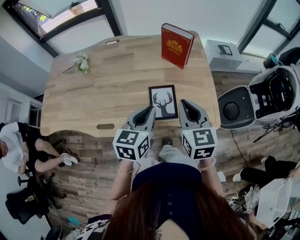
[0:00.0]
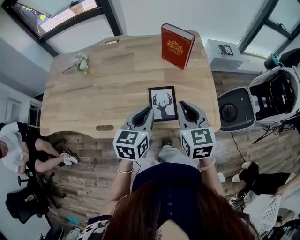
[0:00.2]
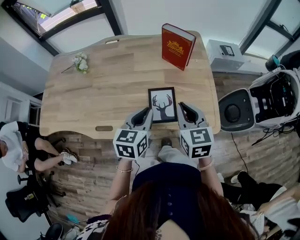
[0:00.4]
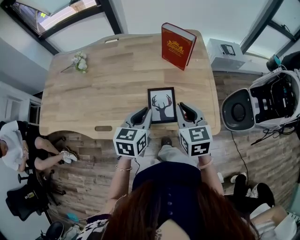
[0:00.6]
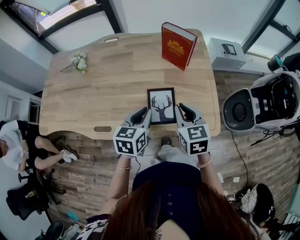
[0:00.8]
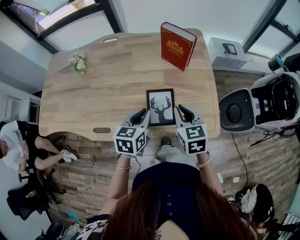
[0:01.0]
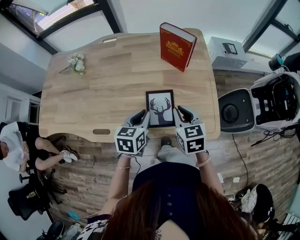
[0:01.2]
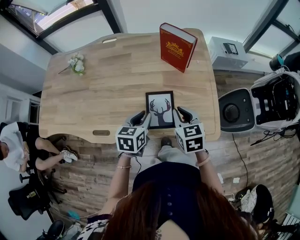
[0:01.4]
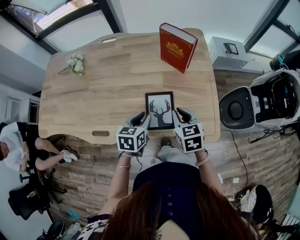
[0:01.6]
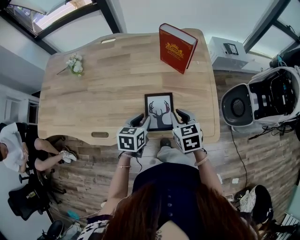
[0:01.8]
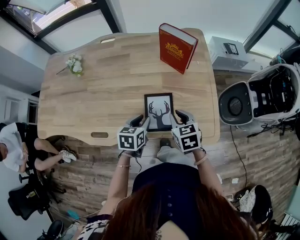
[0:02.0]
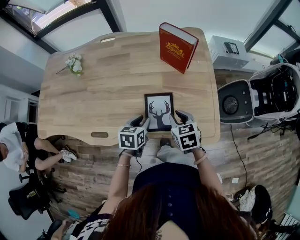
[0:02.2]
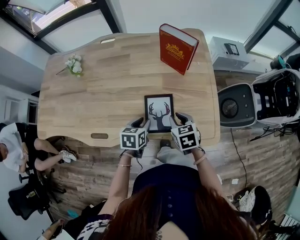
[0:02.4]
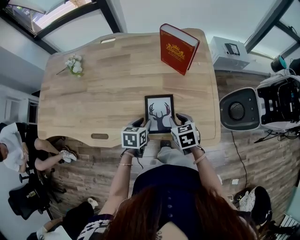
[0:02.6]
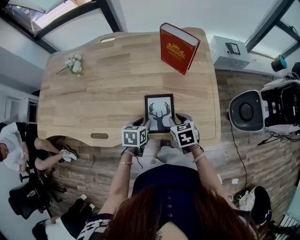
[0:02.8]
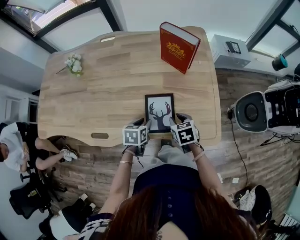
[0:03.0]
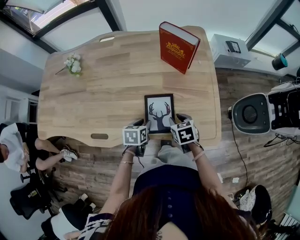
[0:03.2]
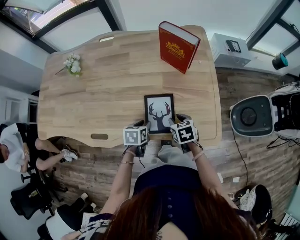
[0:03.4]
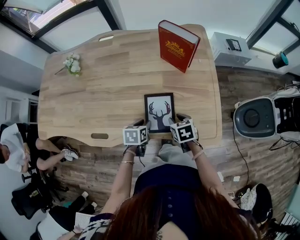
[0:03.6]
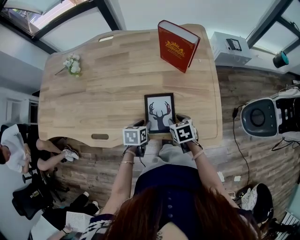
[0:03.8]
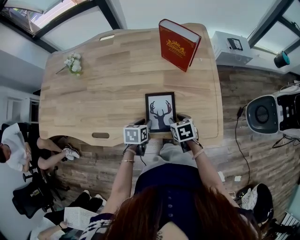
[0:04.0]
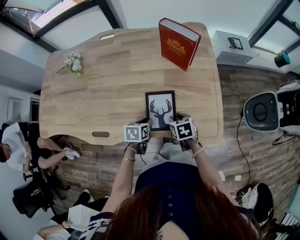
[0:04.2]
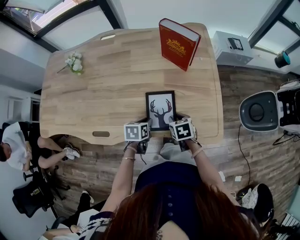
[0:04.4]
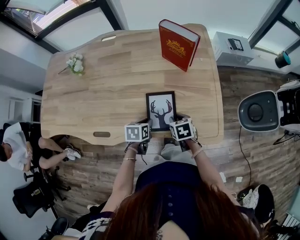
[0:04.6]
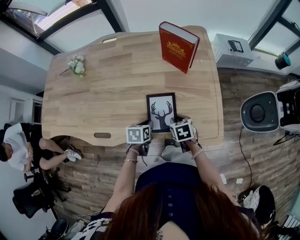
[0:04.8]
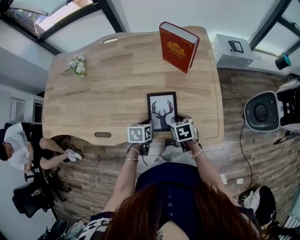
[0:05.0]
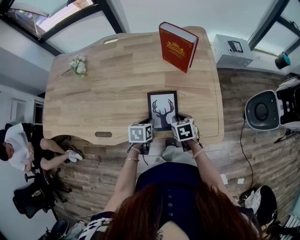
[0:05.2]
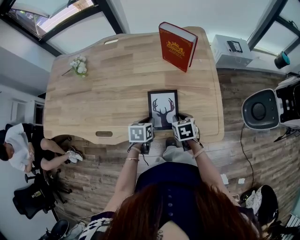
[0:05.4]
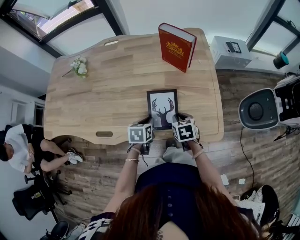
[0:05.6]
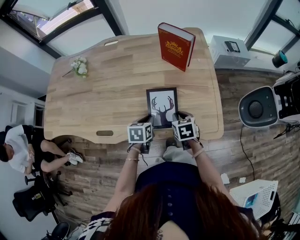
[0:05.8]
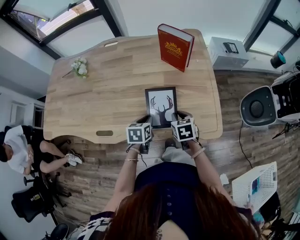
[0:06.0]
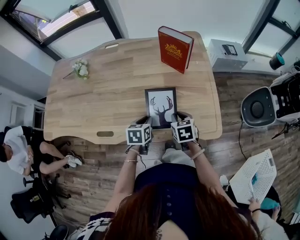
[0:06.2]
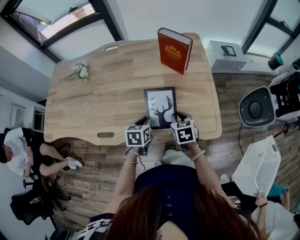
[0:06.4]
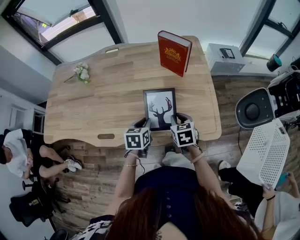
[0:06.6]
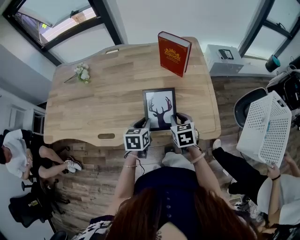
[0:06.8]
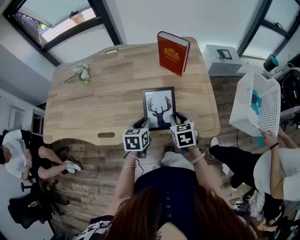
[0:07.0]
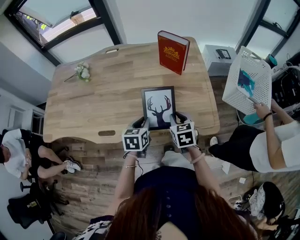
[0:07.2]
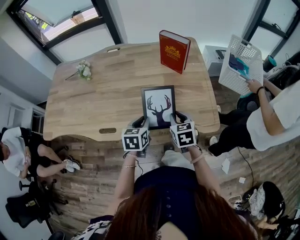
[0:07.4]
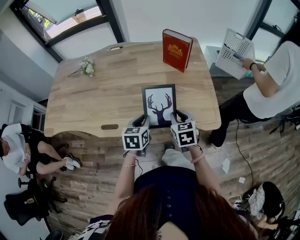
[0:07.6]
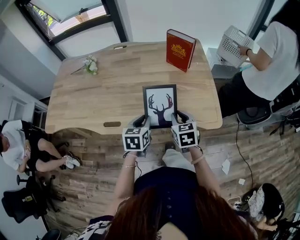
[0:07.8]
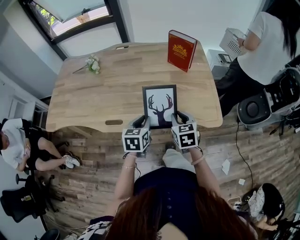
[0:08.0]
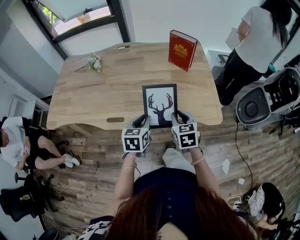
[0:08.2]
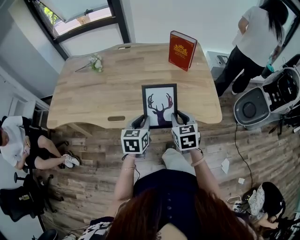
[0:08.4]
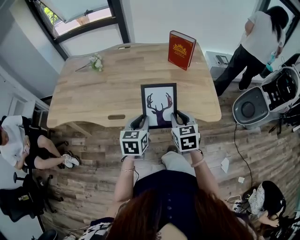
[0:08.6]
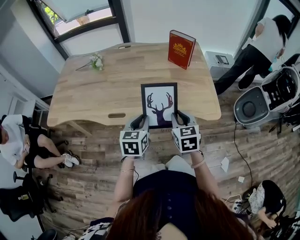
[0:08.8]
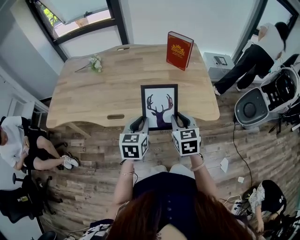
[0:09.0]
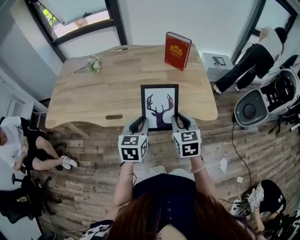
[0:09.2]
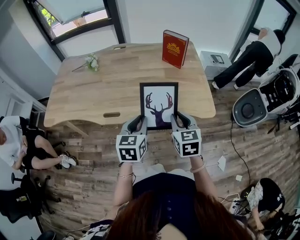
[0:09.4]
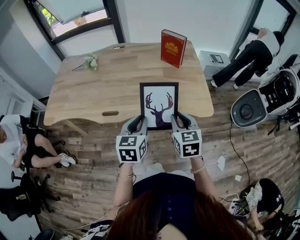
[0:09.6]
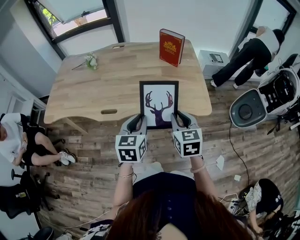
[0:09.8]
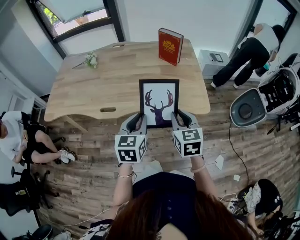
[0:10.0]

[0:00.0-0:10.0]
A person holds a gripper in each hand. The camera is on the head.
0:00.0 to 0:01.4: The two grippers go about 15 cm downward and forward.
0:01.4 to 0:02.8: The grippers both shift downward by about 10 cm.
0:02.8 to 0:05.8: The grippers make only small movements.
0:05.8 to 0:07.2: The grippers both shift upward by approximately 10 cm.
0:07.2 to 0:08.6: Both grippers move backward, upward and to the left, approximately 15 cm.
0:08.6 to 0:10.0: The left gripper travels backward, upward and to the right by some 10 cm. Meanwhile the right gripper is displaced backward, to the right and upward by about 10 cm.

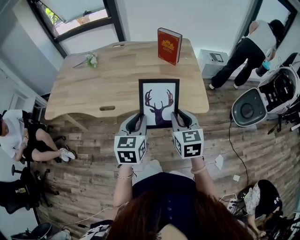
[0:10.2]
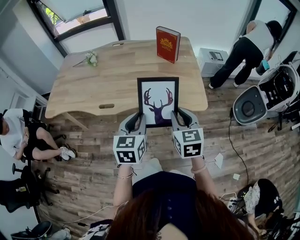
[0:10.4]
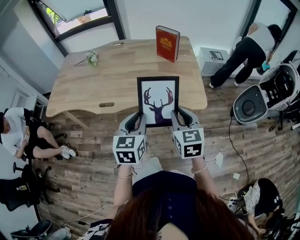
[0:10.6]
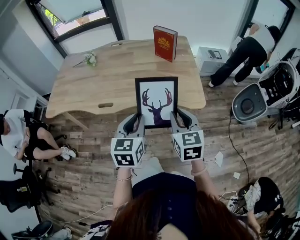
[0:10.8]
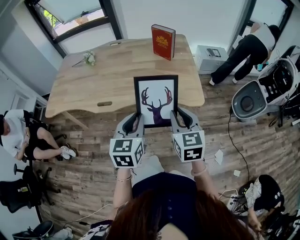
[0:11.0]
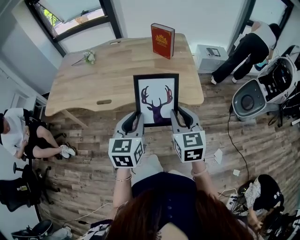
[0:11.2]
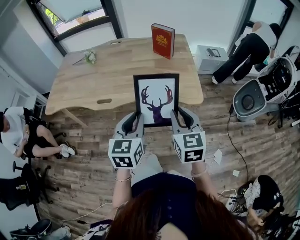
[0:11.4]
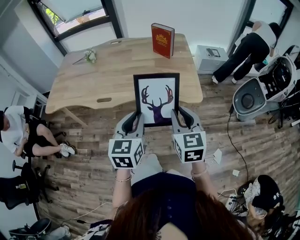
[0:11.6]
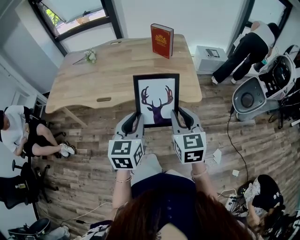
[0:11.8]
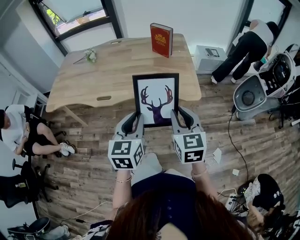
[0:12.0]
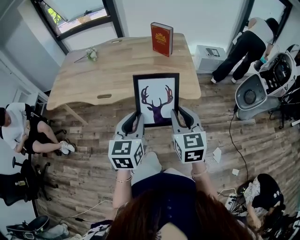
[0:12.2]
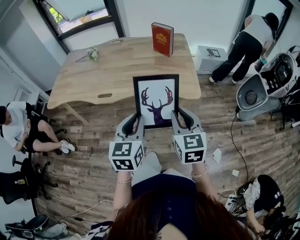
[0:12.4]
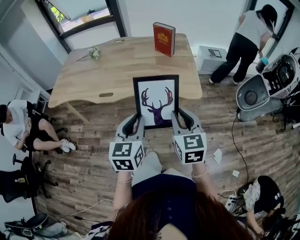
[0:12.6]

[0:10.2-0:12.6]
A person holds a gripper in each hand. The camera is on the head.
0:10.2 to 0:11.4: The two grippers go some 5 cm backward.
0:11.4 to 0:12.6: The grippers both shift backward by some 5 cm.

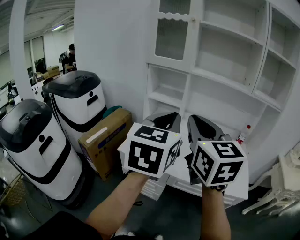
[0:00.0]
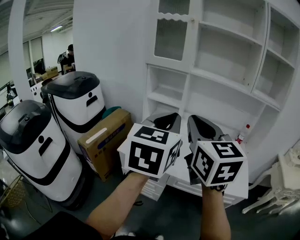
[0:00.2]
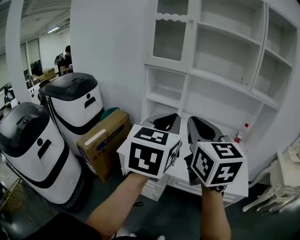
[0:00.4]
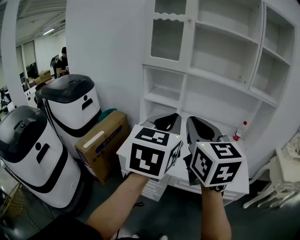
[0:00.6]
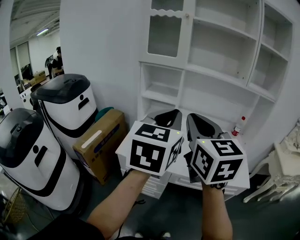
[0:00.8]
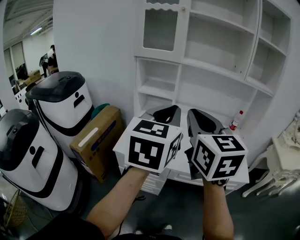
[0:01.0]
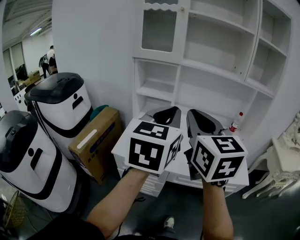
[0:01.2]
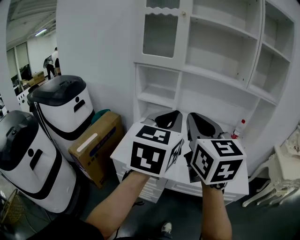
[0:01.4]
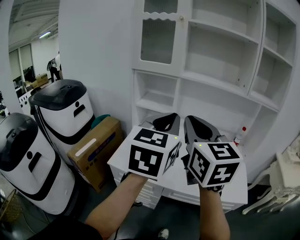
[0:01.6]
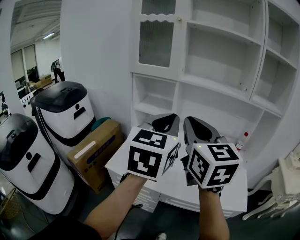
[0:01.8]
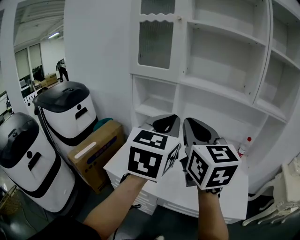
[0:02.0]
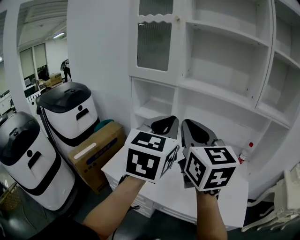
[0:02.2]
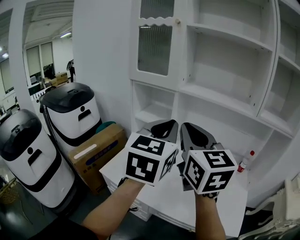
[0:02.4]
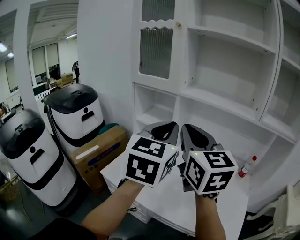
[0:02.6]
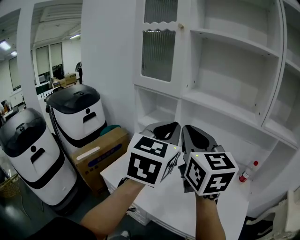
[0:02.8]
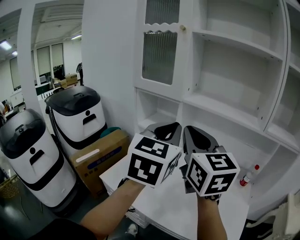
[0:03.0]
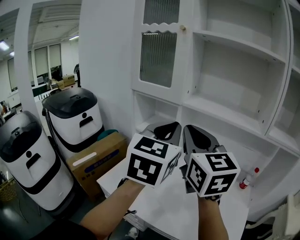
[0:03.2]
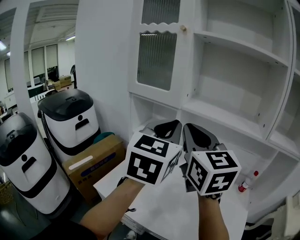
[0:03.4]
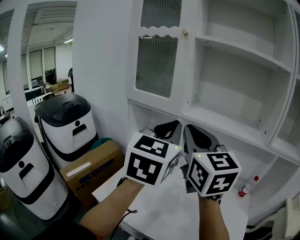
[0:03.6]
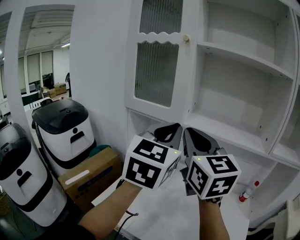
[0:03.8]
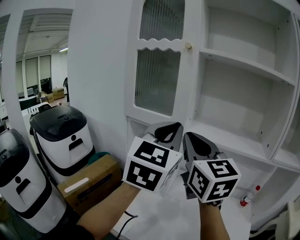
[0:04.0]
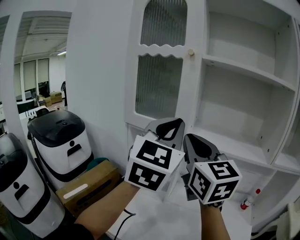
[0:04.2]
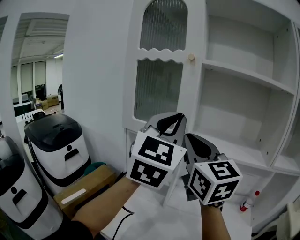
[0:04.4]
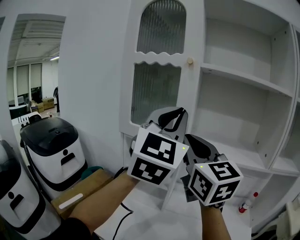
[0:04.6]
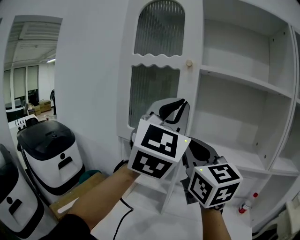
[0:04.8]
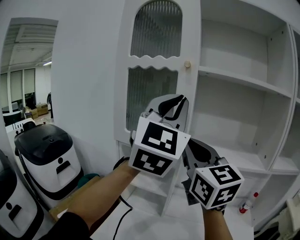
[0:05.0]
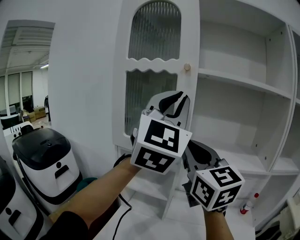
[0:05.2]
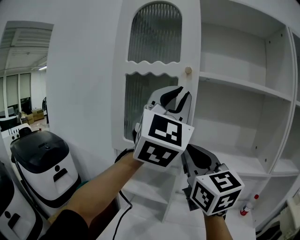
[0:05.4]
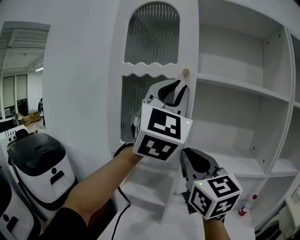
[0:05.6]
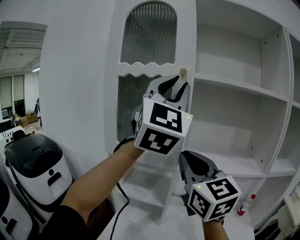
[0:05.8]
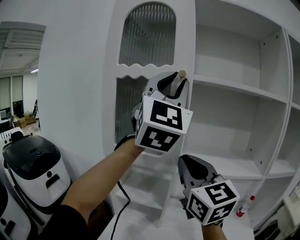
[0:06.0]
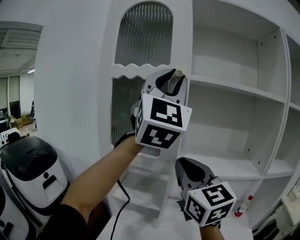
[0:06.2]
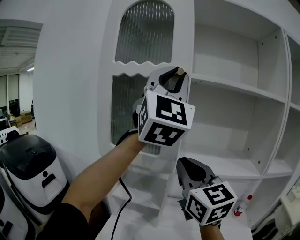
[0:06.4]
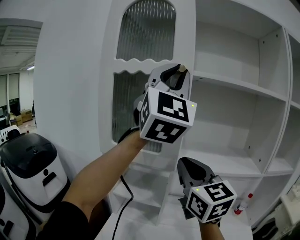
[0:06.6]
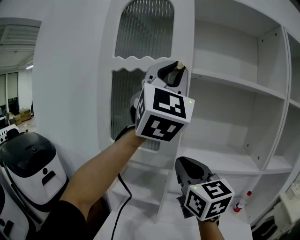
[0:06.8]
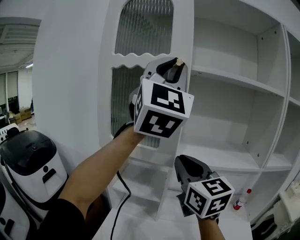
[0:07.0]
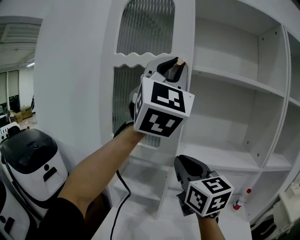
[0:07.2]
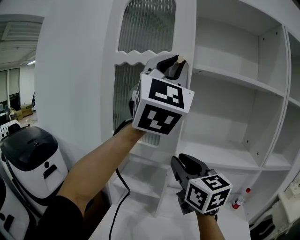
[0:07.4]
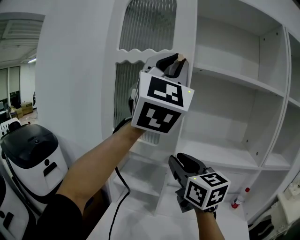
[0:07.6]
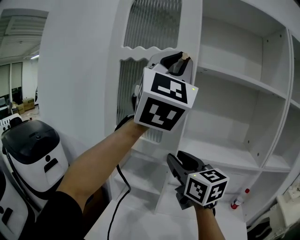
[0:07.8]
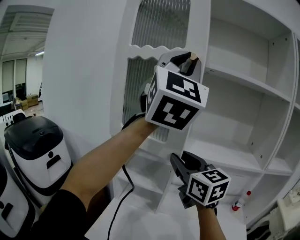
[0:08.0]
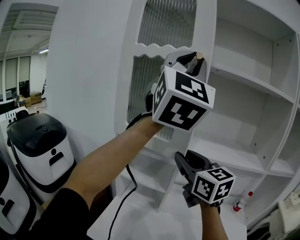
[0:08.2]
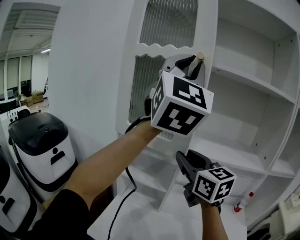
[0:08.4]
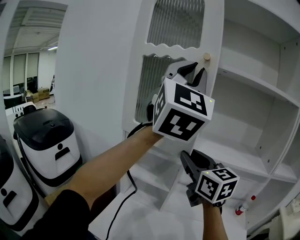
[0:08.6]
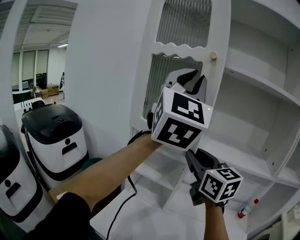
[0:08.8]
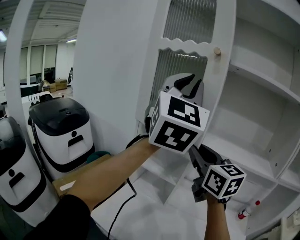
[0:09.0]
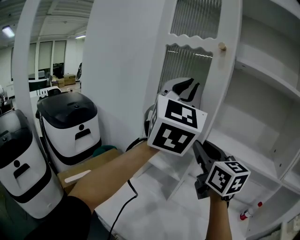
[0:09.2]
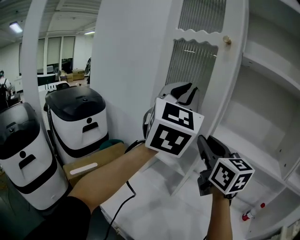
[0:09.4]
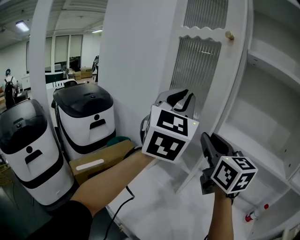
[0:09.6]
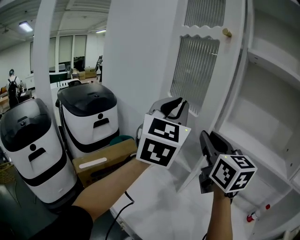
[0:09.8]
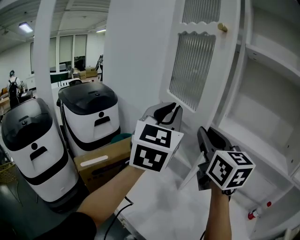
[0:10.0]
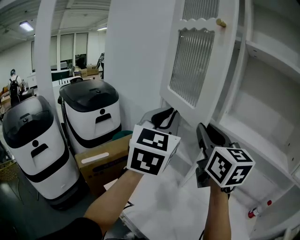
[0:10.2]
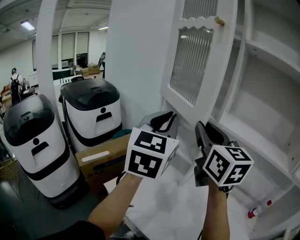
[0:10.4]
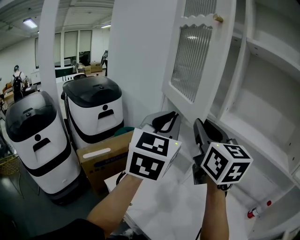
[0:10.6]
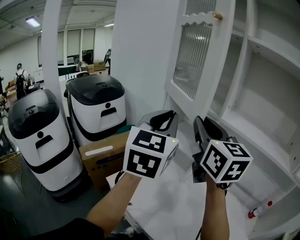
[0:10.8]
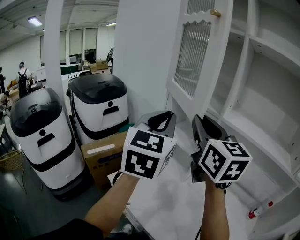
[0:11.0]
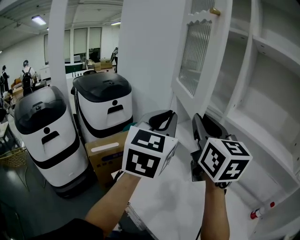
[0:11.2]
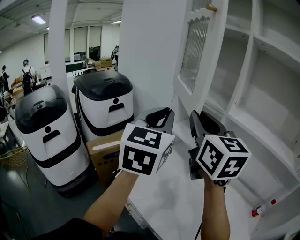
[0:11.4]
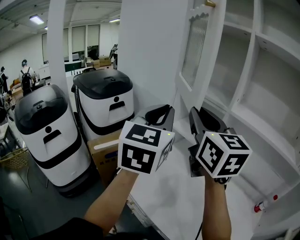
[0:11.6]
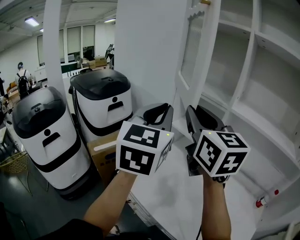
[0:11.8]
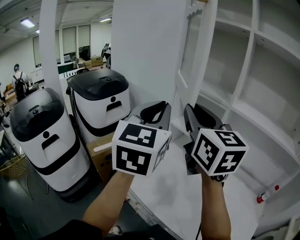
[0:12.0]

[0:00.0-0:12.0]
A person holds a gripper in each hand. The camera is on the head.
0:00.0 to 0:01.6: The grippers both shift forward by about 10 cm.
0:01.6 to 0:03.0: Both grippers move forward and to the right, roughly 15 cm.
0:03.0 to 0:04.4: Both grippers travel together forward and upward, some 15 cm. The left gripper turns by roughly 20 degrees.
0:04.4 to 0:06.0: The left gripper travels upward and forward by some 15 cm, and turns by roughly 20 degrees.
0:06.0 to 0:07.6: The right gripper goes some 5 cm downward.
0:07.6 to 0:09.0: The left gripper shifts some 10 cm downward.
0:09.0 to 0:10.4: The right gripper shifts by some 5 cm; the left gripper travels downward by about 20 cm, and swivels about 30 degrees.
0:10.4 to 0:12.0: The right gripper shifts some 10 cm to the left. The left gripper heads to the left and backward, covering about 10 cm.
